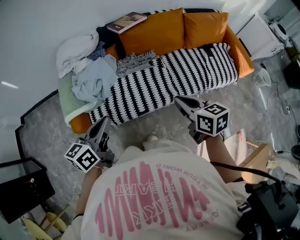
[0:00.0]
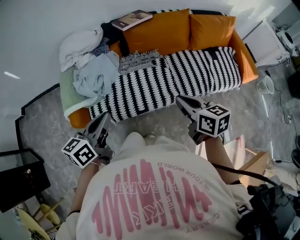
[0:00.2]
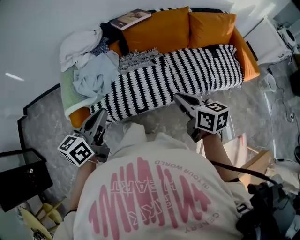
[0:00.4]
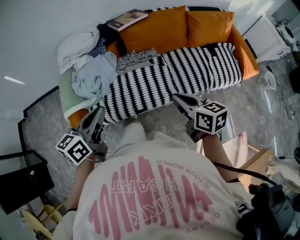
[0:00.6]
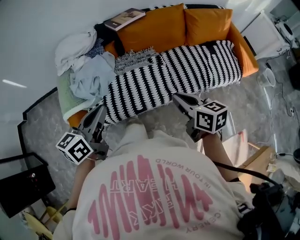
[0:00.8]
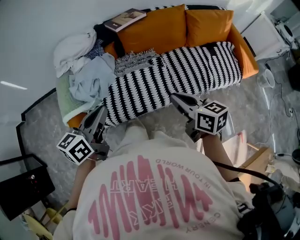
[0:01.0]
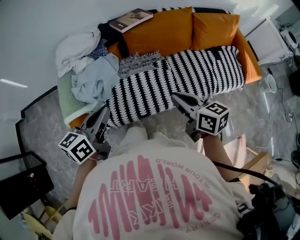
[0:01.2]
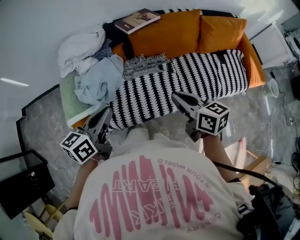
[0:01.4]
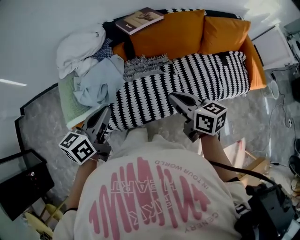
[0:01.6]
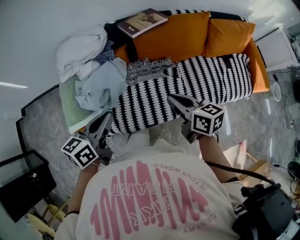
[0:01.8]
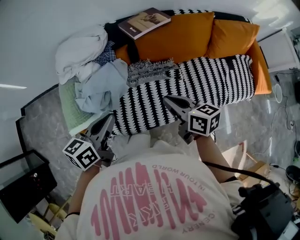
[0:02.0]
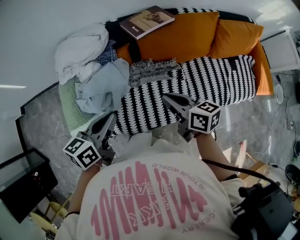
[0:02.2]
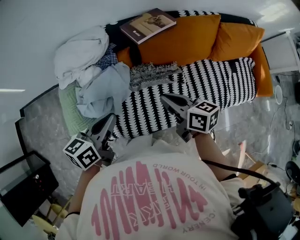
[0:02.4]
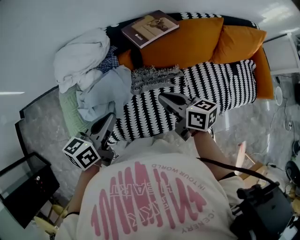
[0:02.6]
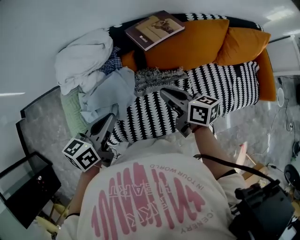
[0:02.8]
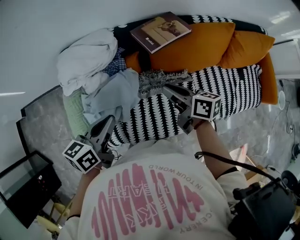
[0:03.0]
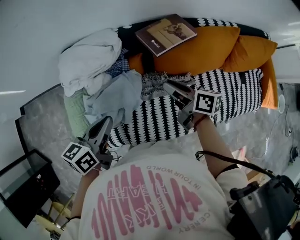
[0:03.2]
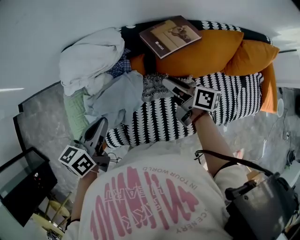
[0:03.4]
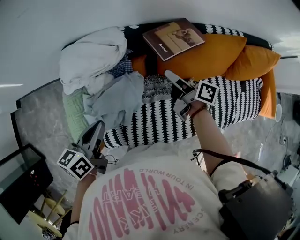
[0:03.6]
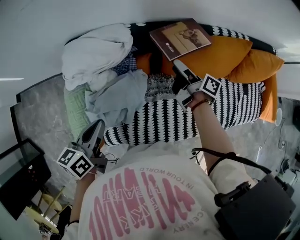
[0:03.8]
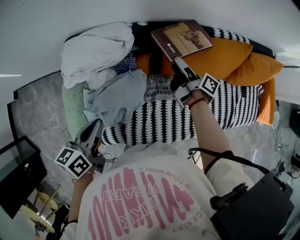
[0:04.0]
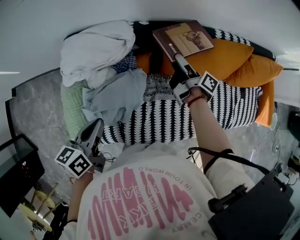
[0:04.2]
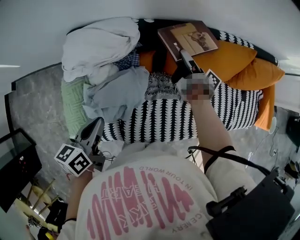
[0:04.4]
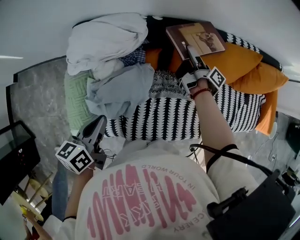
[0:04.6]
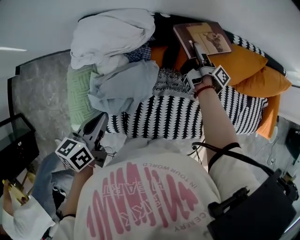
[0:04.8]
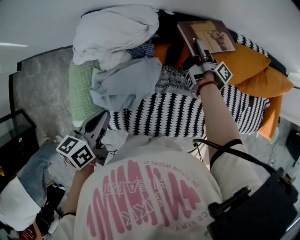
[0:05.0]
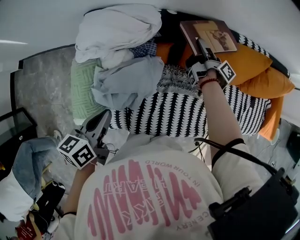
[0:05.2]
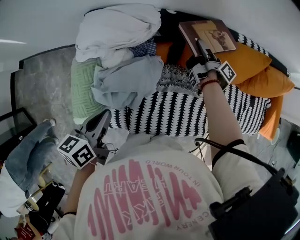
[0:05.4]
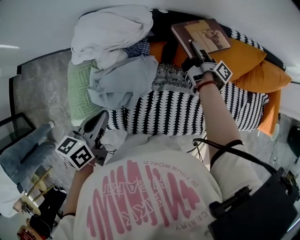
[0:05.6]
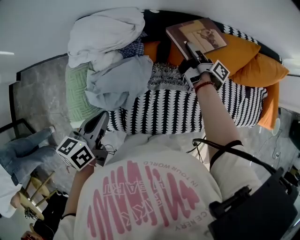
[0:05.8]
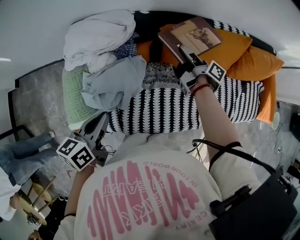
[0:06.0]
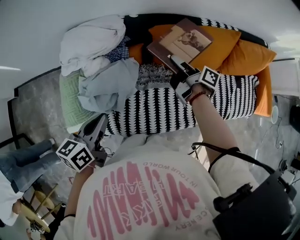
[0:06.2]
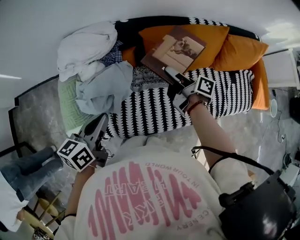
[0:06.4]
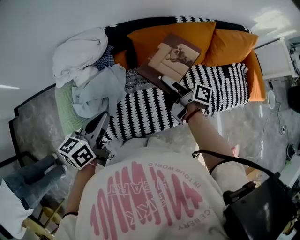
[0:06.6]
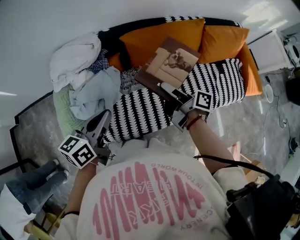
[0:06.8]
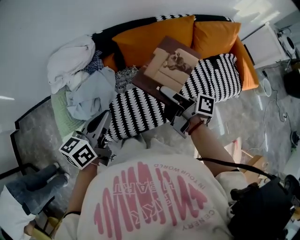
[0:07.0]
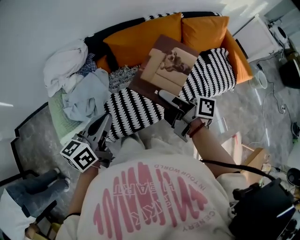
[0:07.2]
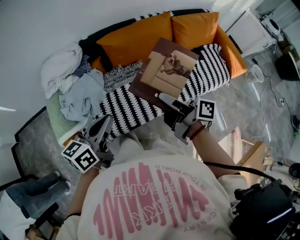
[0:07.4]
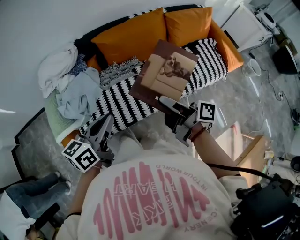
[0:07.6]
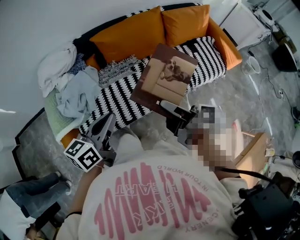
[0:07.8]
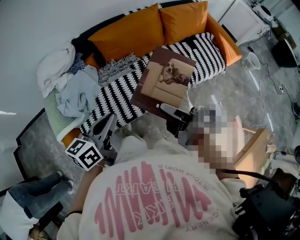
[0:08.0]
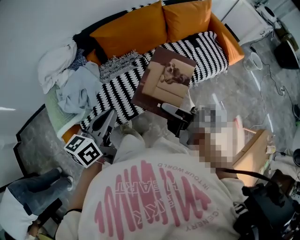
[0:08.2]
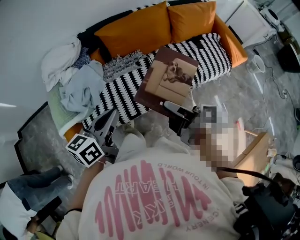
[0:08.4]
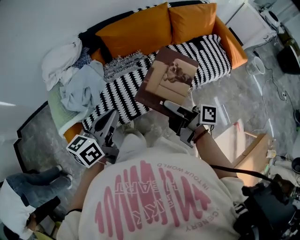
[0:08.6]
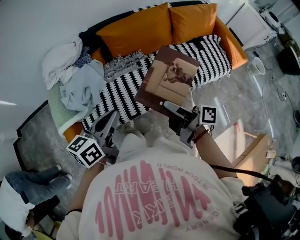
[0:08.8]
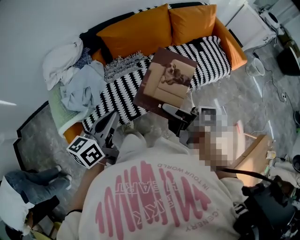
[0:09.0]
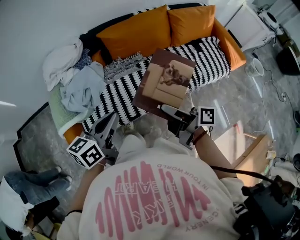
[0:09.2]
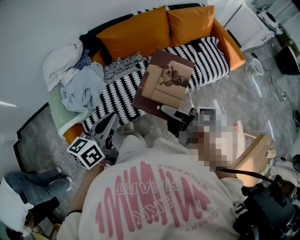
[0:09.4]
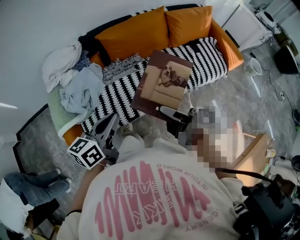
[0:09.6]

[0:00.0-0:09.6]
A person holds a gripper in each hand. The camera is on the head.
0:00.0 to 0:01.6: Both grippers move forward, approximately 15 cm.
0:01.6 to 0:03.2: The left gripper is displaced forward and to the left by approximately 15 cm; the right gripper goes approximately 25 cm forward, changes its angle by about 20 degrees, and opens.
0:03.2 to 0:04.8: The left gripper heads to the left, covering some 5 cm, while the right gripper shifts approximately 15 cm forward, changes its angle by about 50 degrees, and opens.
0:04.8 to 0:06.4: The left gripper heads to the right, covering about 10 cm. Meanwhile the right gripper is displaced backward by about 15 cm, and closes.
0:06.4 to 0:08.0: The right gripper travels backward by approximately 35 cm, while the left gripper moves to the right and backward, roughly 20 cm, and rotates approximately 20 degrees.
0:08.0 to 0:09.6: The grippers move only a little.

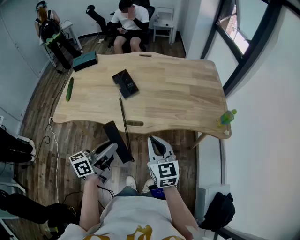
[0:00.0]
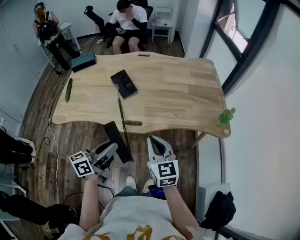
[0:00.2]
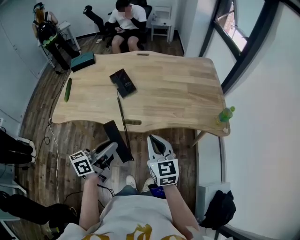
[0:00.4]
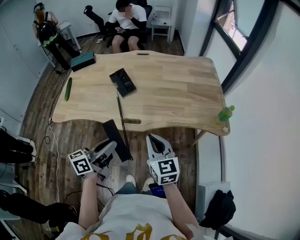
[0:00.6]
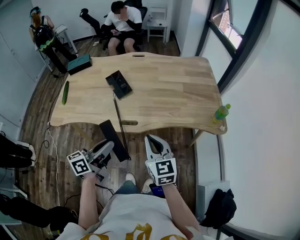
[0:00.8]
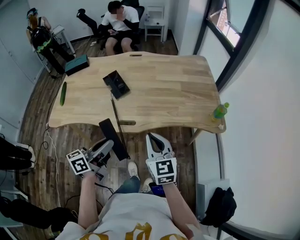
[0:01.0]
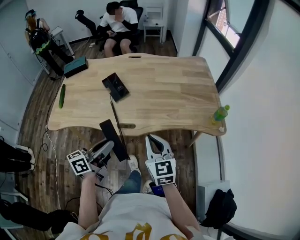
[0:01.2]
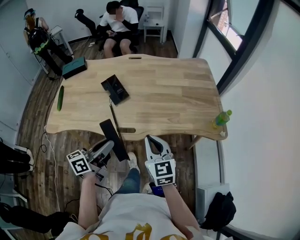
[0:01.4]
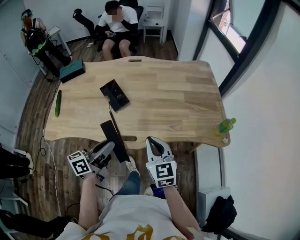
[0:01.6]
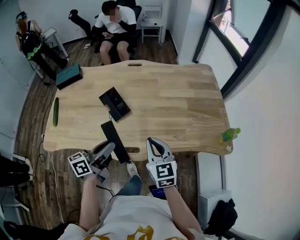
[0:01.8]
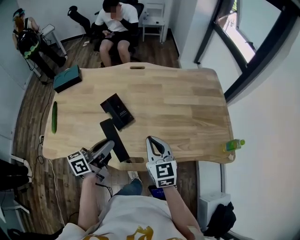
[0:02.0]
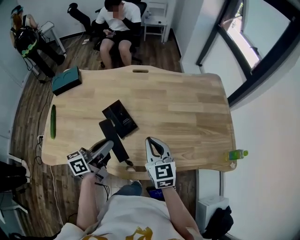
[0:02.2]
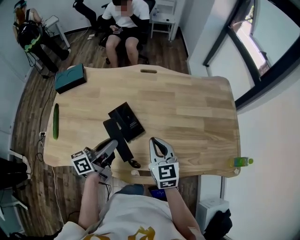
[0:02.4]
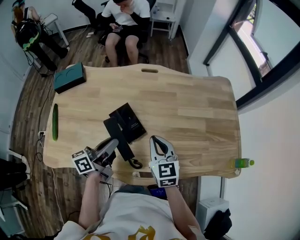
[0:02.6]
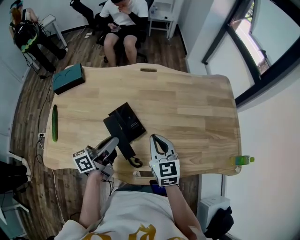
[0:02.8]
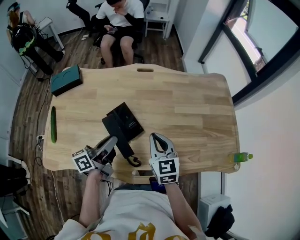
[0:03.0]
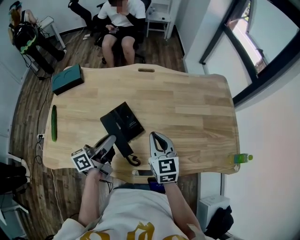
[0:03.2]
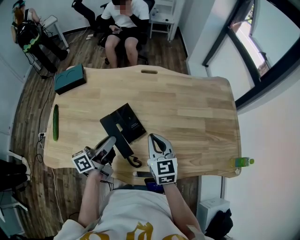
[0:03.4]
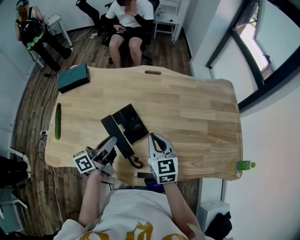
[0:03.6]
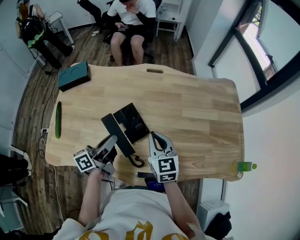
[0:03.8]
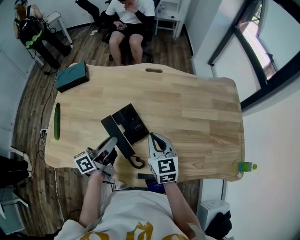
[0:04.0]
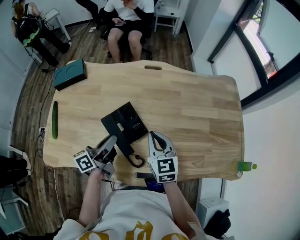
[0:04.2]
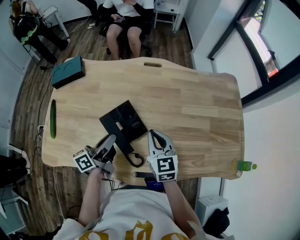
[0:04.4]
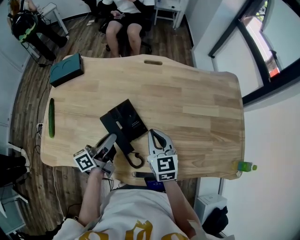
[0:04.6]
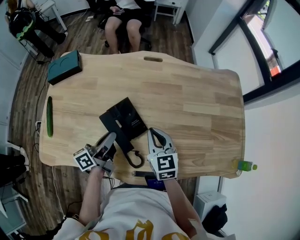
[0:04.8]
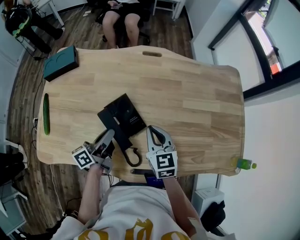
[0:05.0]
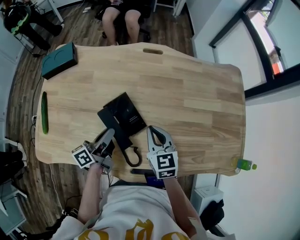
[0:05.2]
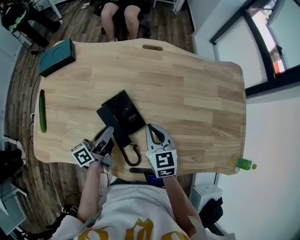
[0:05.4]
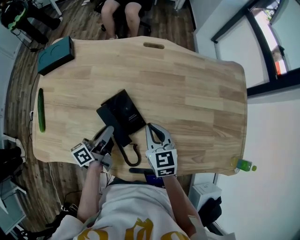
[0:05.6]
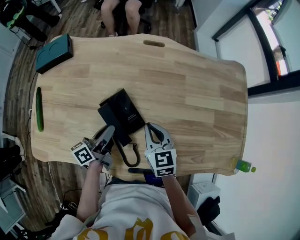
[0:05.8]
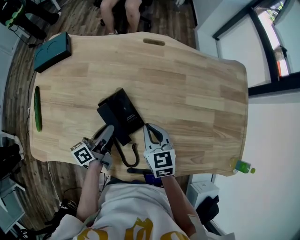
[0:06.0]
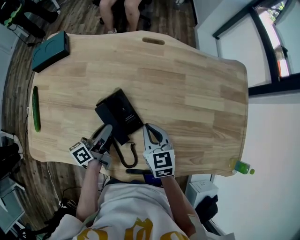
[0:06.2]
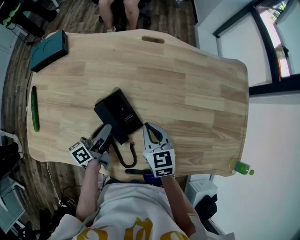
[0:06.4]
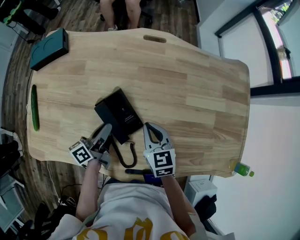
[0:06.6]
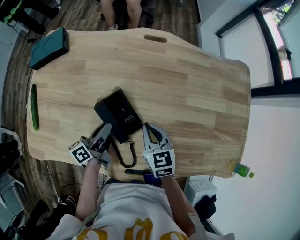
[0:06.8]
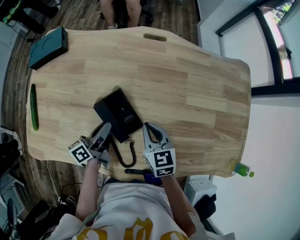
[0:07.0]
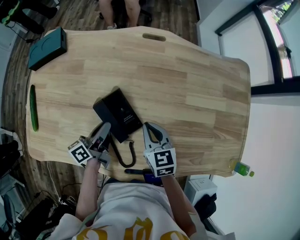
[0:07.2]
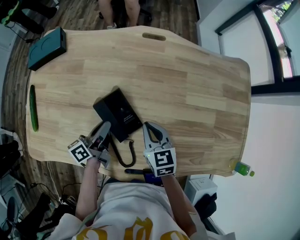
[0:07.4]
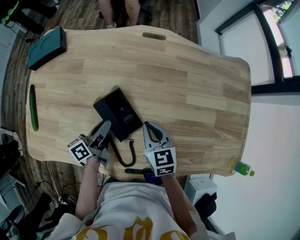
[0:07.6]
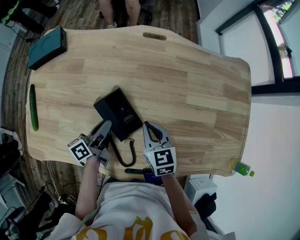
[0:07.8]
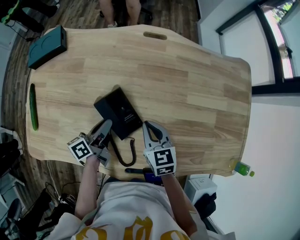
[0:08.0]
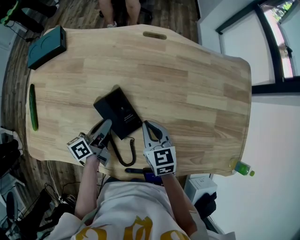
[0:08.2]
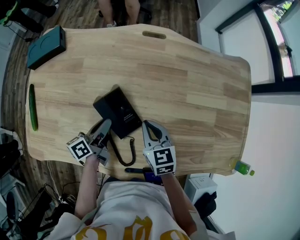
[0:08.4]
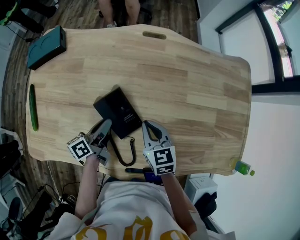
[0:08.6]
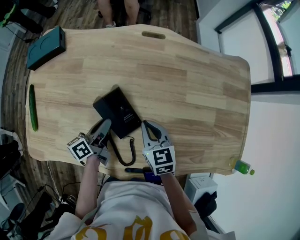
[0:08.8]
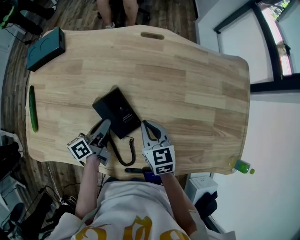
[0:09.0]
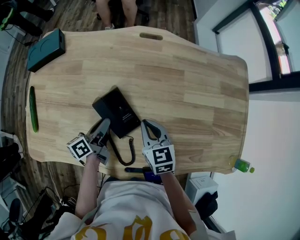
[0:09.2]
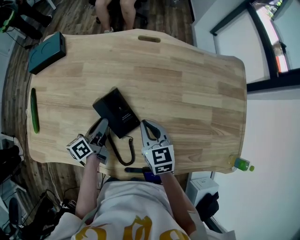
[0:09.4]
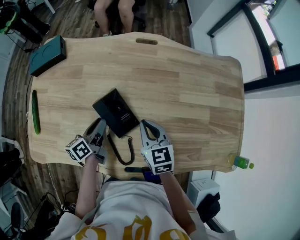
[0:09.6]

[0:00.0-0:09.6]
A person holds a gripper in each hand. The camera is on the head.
0:00.0 to 0:01.6: The grippers both shift forward by roughly 10 cm.
0:01.6 to 0:03.2: The grippers both shift forward and to the left by approximately 25 cm.
0:03.2 to 0:04.8: Both grippers move downward, roughly 5 cm.
0:04.8 to 0:06.4: Both grippers move downward, about 5 cm.
0:06.4 to 0:09.6: There are only small adjustments of the grippers.

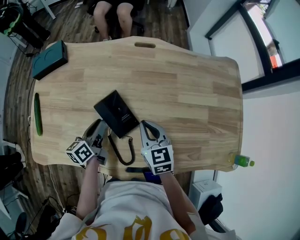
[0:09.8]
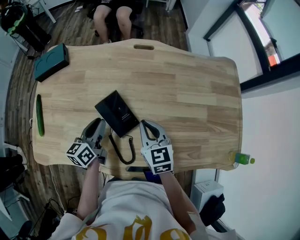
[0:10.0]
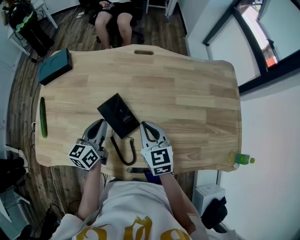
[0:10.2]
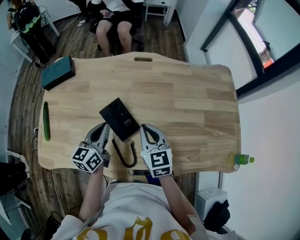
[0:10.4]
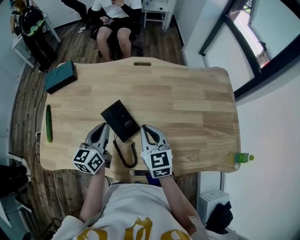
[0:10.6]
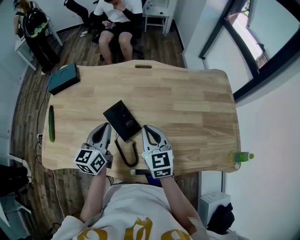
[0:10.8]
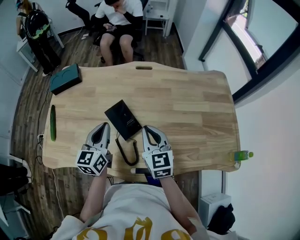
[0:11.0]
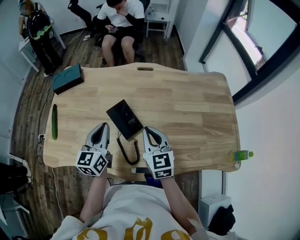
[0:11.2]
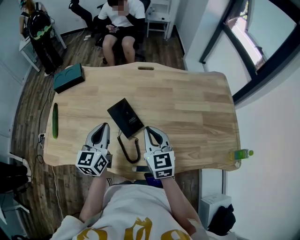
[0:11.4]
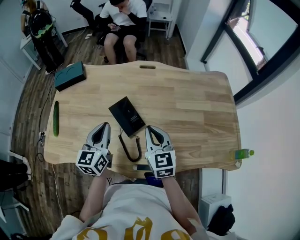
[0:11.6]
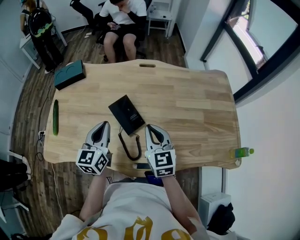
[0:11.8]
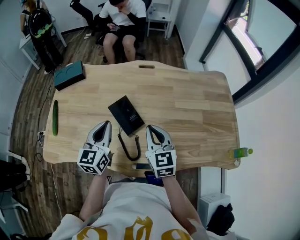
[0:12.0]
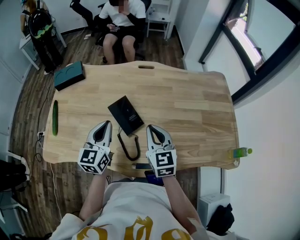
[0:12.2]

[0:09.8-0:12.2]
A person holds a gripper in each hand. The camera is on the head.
0:09.8 to 0:11.0: The left gripper moves upward, some 15 cm, changes its angle by roughly 40 degrees, and closes. The right gripper heads upward, covering approximately 10 cm.
0:11.0 to 0:12.2: The grippers make only small movements.

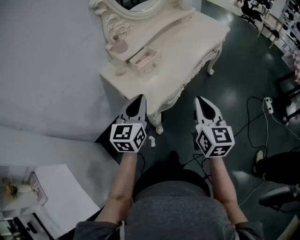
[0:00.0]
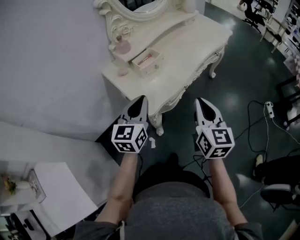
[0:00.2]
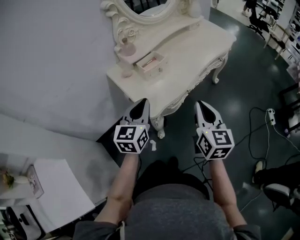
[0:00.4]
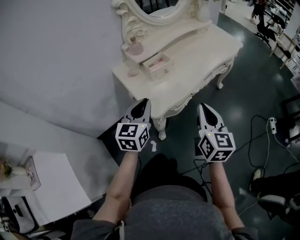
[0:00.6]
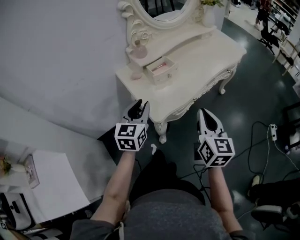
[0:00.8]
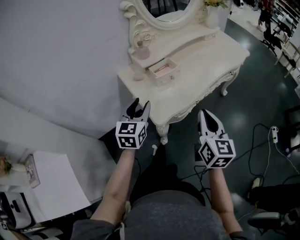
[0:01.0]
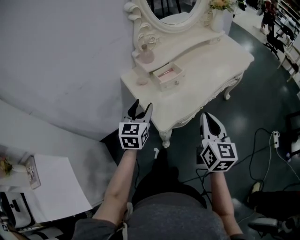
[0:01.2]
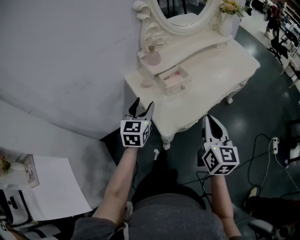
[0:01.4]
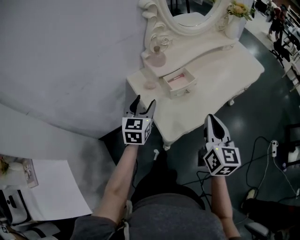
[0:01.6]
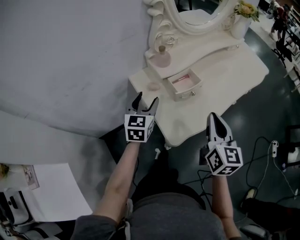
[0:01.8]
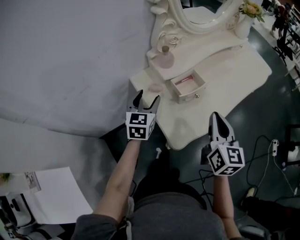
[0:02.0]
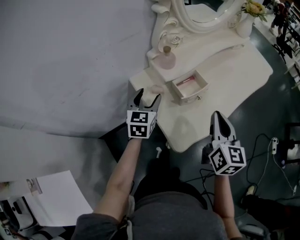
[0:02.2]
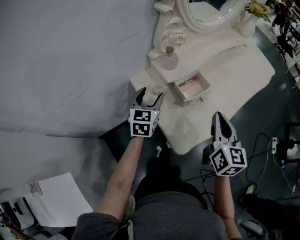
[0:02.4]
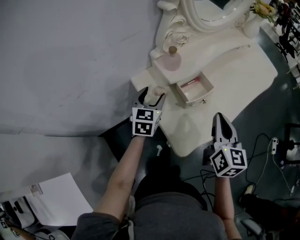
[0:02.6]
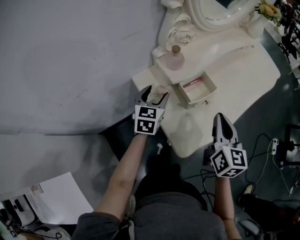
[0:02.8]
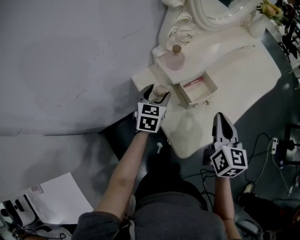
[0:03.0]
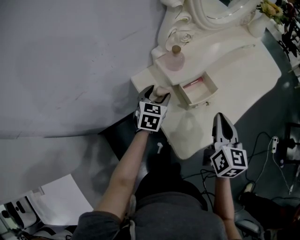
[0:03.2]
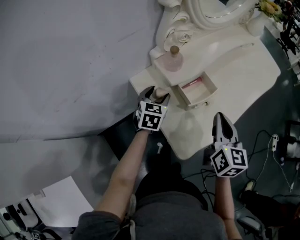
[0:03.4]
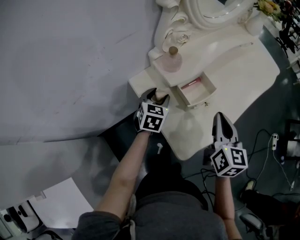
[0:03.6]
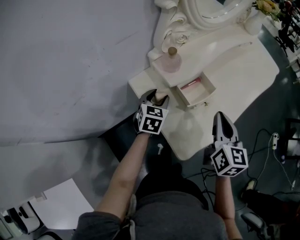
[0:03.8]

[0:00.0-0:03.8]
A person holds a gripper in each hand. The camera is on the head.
0:00.0 to 0:01.2: The left gripper travels to the left by about 5 cm, and opens its fingers.
0:01.2 to 0:02.6: The left gripper heads forward, downward and to the left, covering about 20 cm, while the right gripper is displaced forward and to the left by approximately 15 cm.
0:02.6 to 0:03.8: The left gripper moves some 5 cm.
